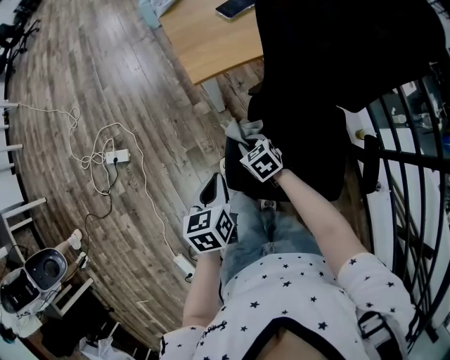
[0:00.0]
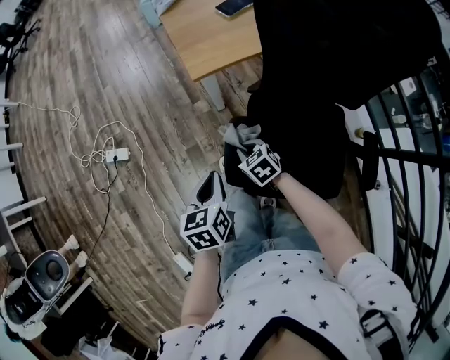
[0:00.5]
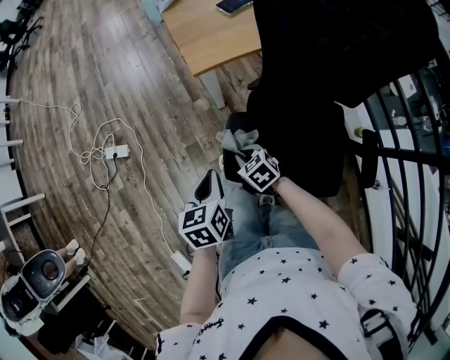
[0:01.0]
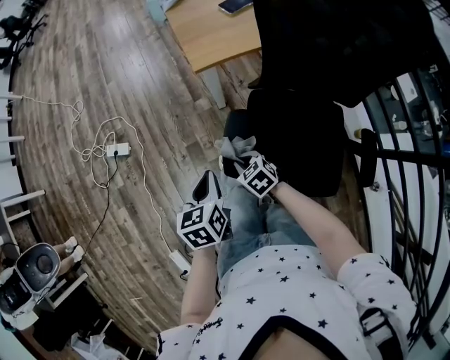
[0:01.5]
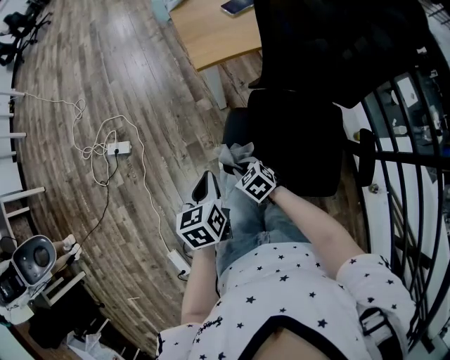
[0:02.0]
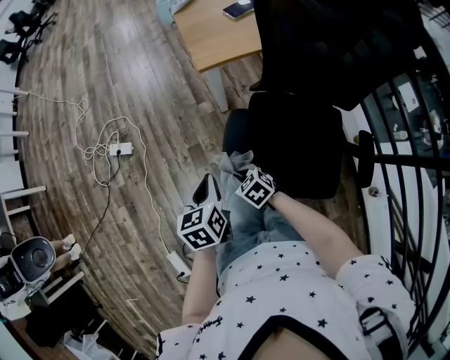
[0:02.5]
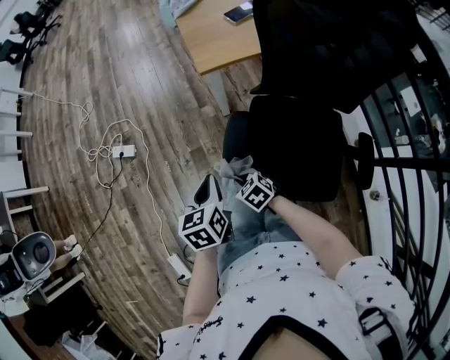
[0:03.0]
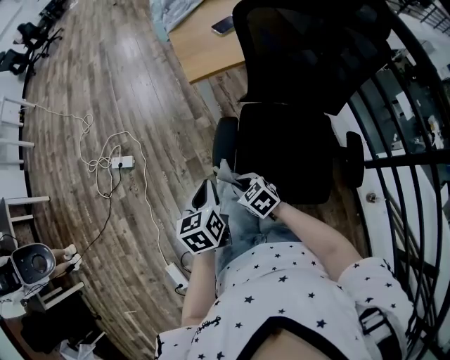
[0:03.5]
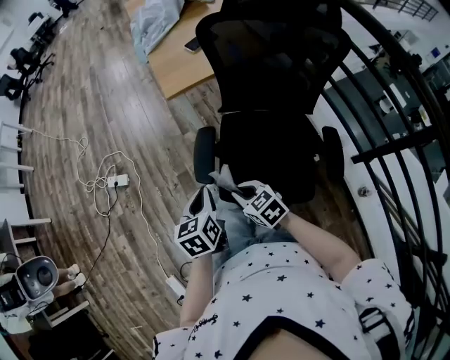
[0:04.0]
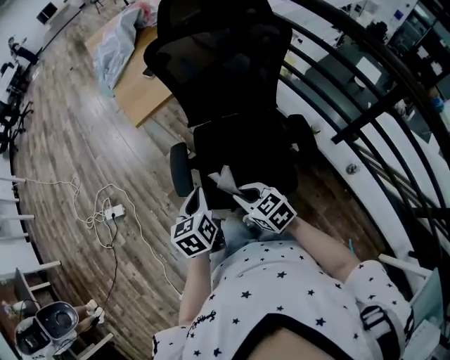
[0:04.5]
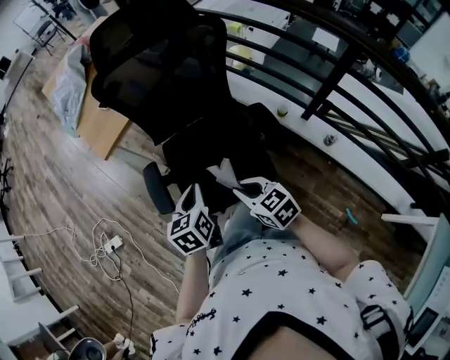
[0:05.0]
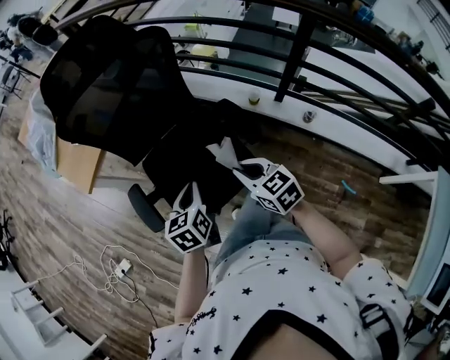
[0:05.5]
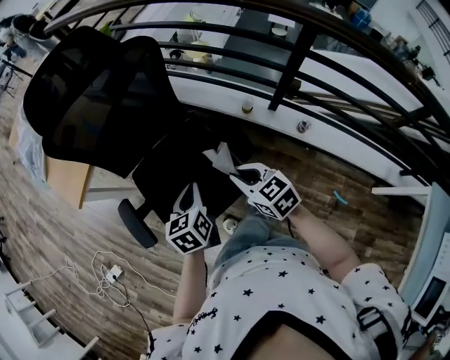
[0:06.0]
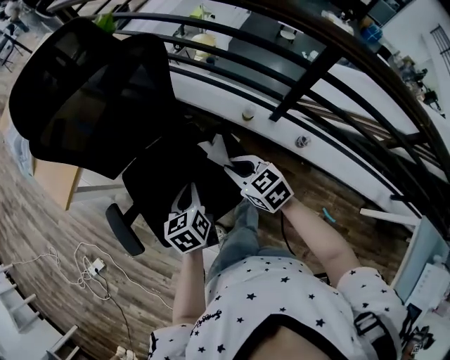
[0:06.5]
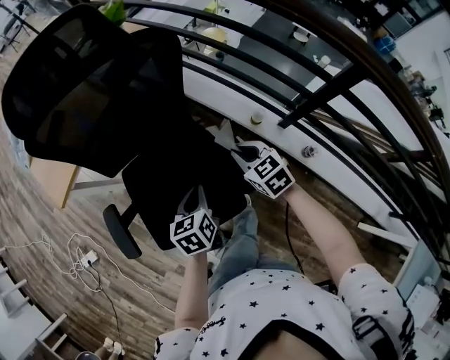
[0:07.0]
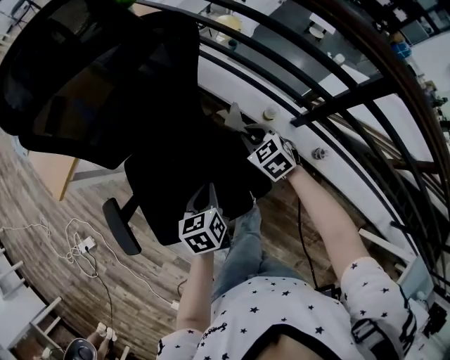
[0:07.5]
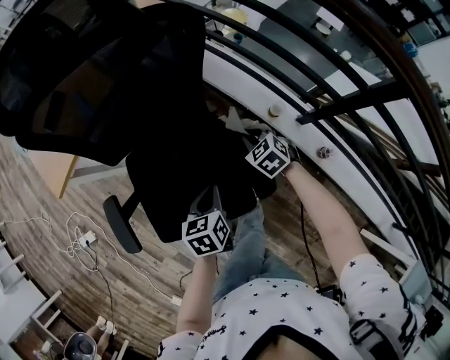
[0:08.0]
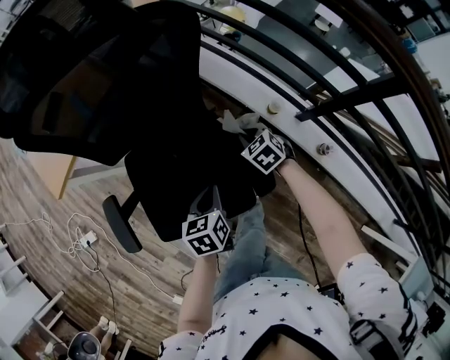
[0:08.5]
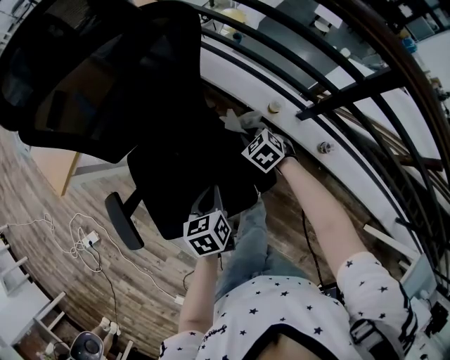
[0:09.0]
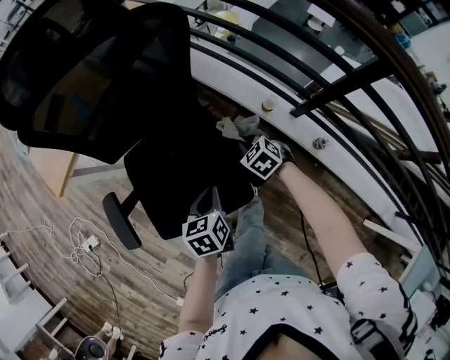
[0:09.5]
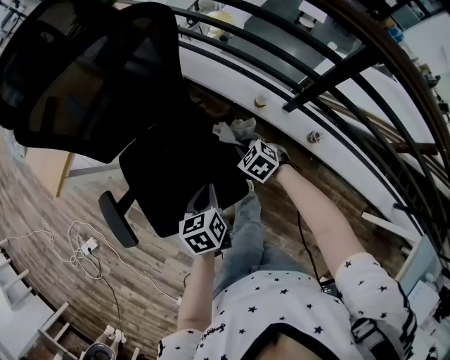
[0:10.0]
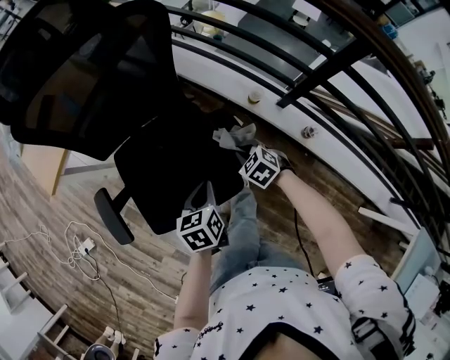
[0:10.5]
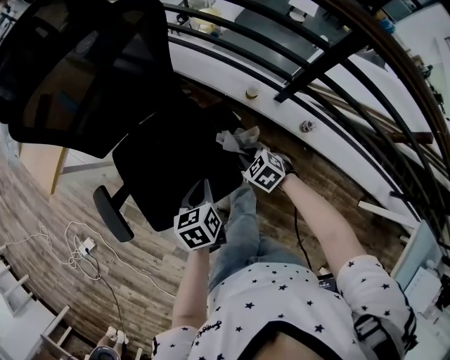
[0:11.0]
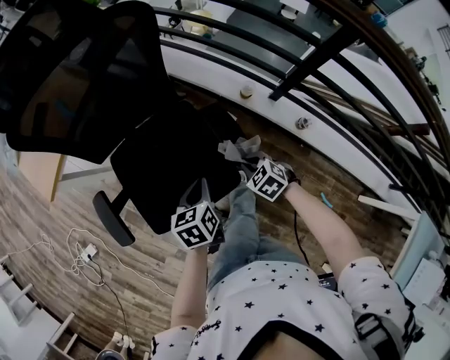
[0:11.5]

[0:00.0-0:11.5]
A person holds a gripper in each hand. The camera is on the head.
0:00.0 to 0:02.0: The right gripper moves backward and to the left, about 15 cm. Meanwhile the left gripper moves about 5 cm.
0:02.0 to 0:04.0: The left gripper is displaced backward and upward by approximately 10 cm. The right gripper is displaced upward and backward by approximately 20 cm.
0:04.0 to 0:06.0: The left gripper moves roughly 35 cm, and changes its angle by about 40 degrees. The right gripper moves approximately 35 cm, and rotates approximately 40 degrees.
0:06.0 to 0:07.5: The right gripper travels forward and downward by about 25 cm, and changes its angle by about 30 degrees; the left gripper goes approximately 15 cm downward, forward and to the right.
0:07.5 to 0:09.5: The right gripper goes roughly 10 cm downward and backward.
0:09.5 to 0:11.5: The right gripper goes roughly 15 cm backward.

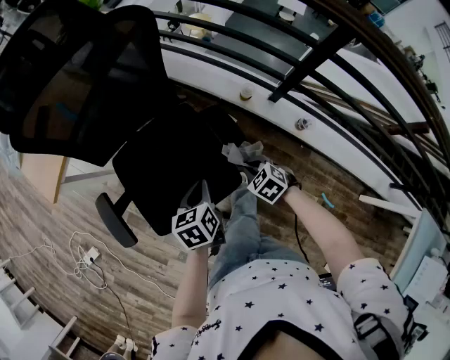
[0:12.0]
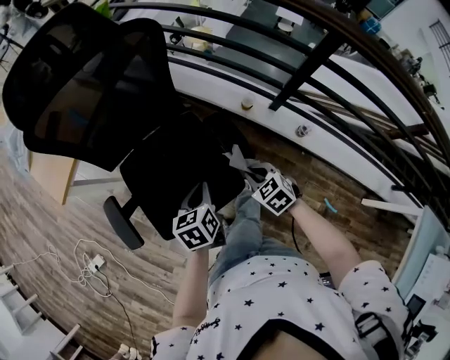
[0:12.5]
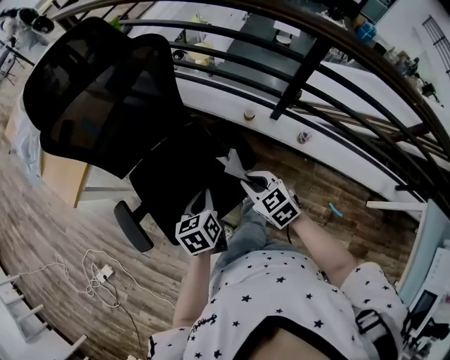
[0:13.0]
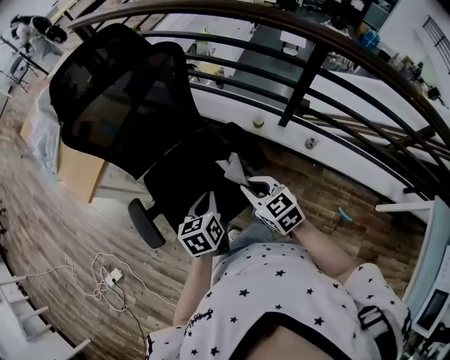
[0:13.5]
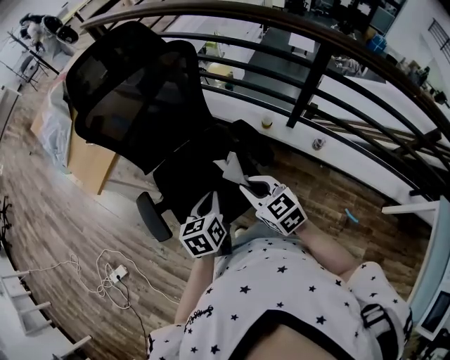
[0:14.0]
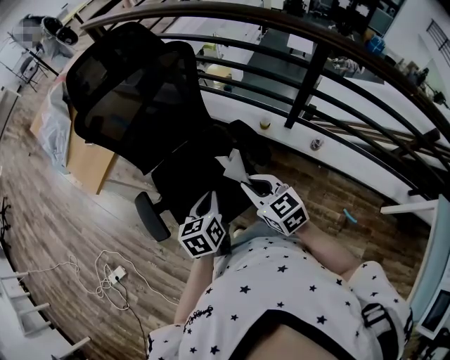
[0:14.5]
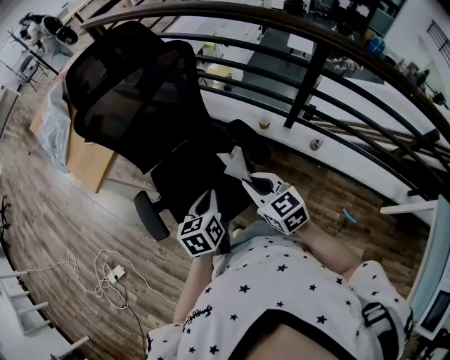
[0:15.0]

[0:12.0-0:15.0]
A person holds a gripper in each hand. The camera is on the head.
0:12.0 to 0:13.5: The right gripper travels upward and to the left by about 20 cm, and angles its fingers upward, by roughly 30 degrees. The left gripper travels upward and to the left by some 10 cm.
0:13.5 to 0:15.0: The right gripper changes place by approximately 5 cm.

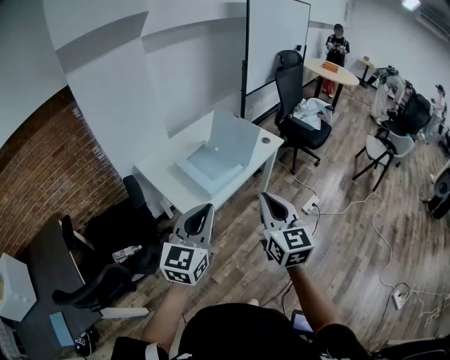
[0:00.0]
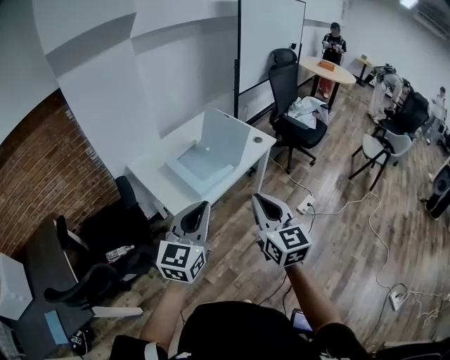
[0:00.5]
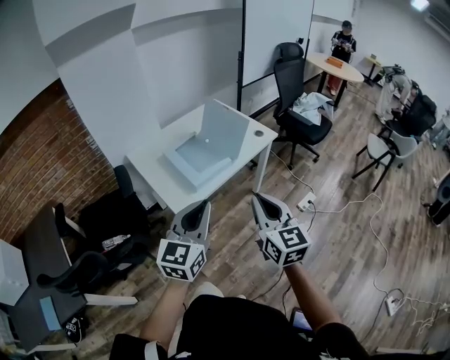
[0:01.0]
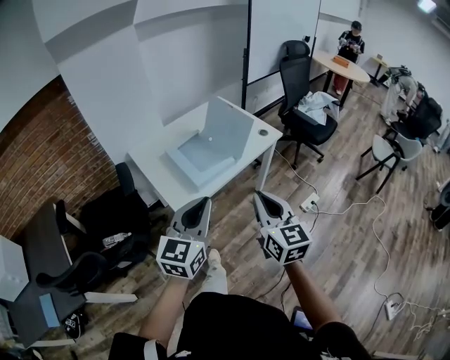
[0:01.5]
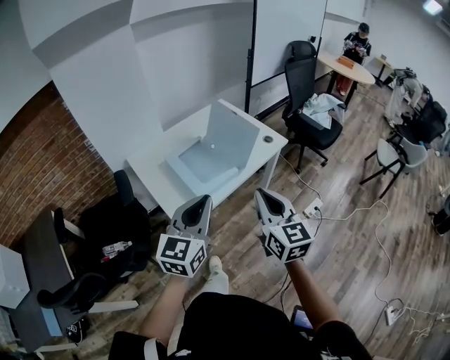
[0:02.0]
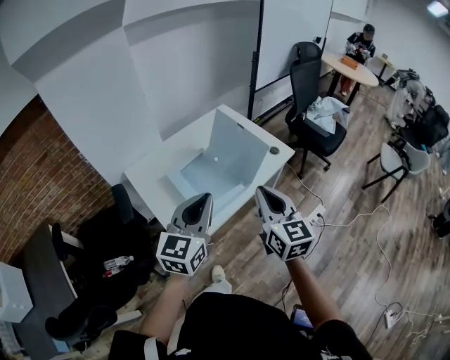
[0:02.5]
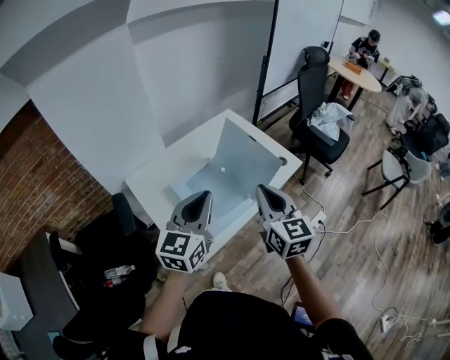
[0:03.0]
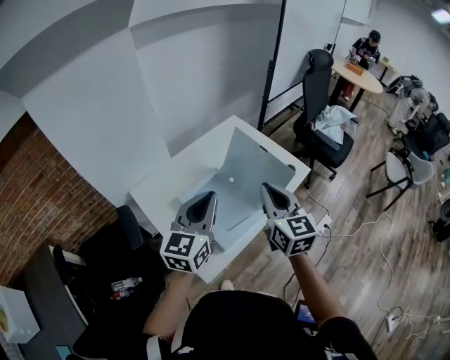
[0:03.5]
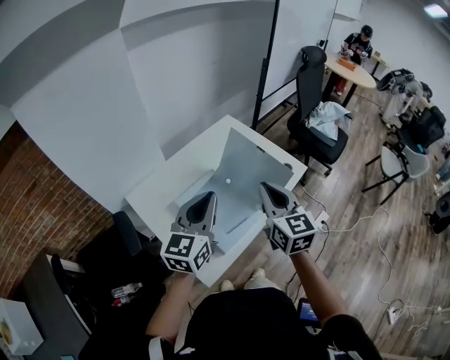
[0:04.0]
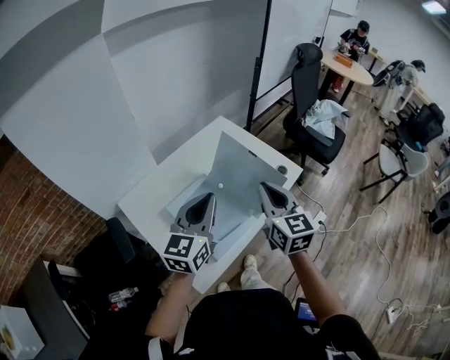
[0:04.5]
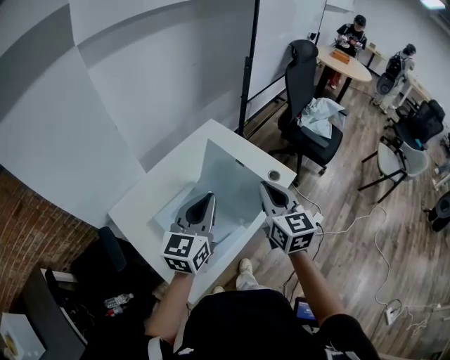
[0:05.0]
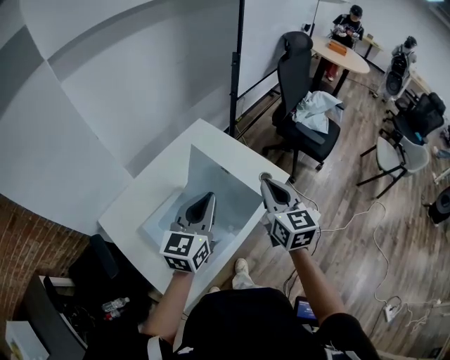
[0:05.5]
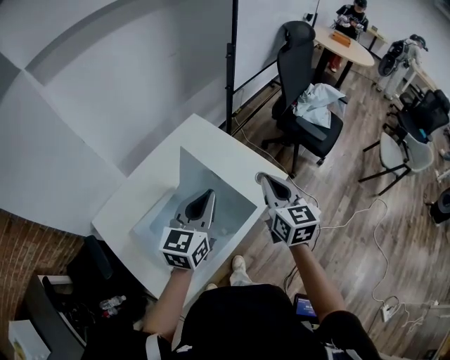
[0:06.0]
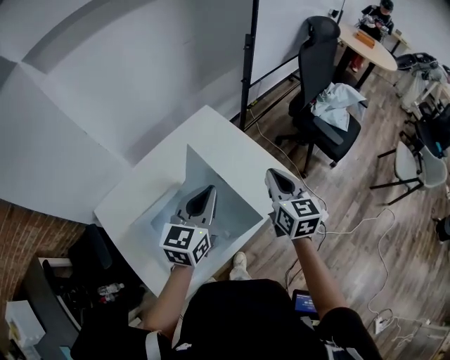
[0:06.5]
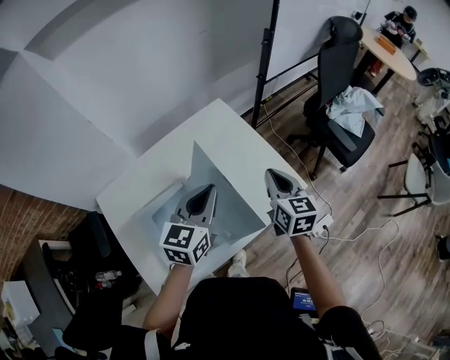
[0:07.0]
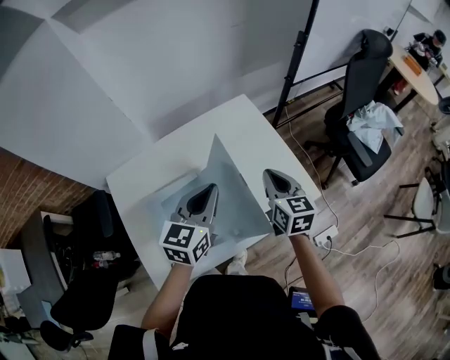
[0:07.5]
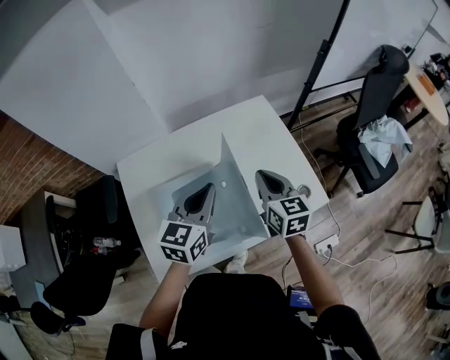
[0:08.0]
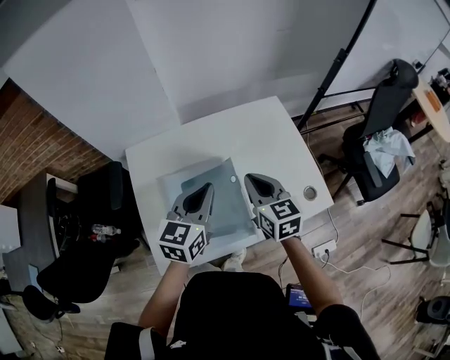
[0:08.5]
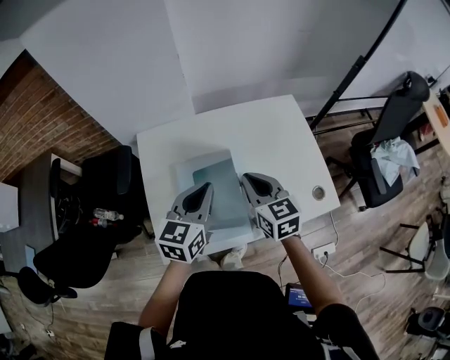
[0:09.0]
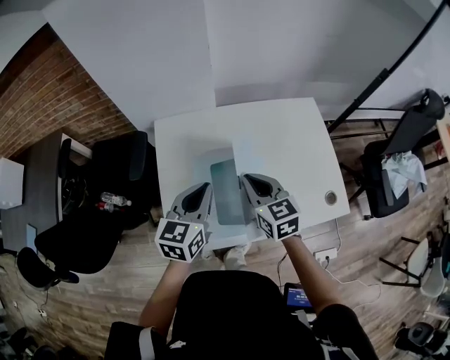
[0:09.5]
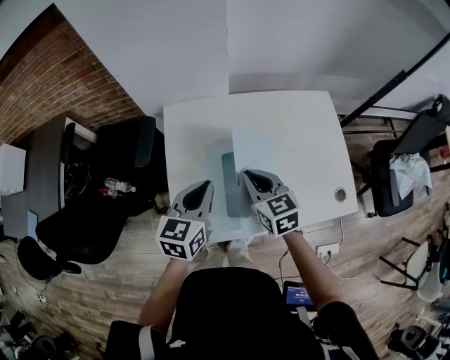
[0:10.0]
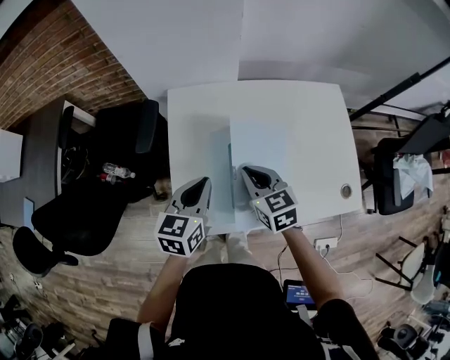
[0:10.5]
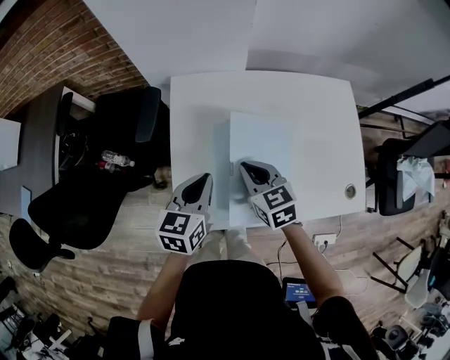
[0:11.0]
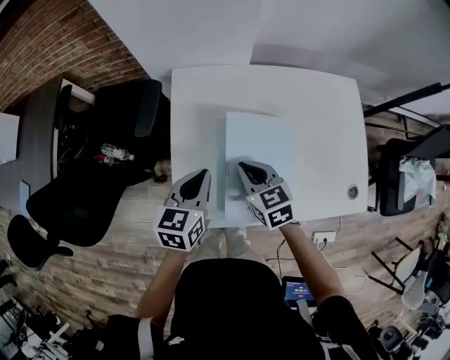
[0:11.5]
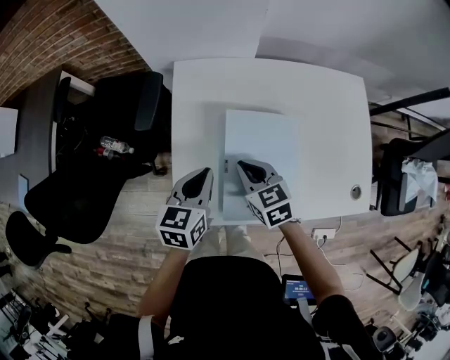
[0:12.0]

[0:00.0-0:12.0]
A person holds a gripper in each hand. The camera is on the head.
0:00.0 to 0:02.0: The left gripper shifts roughly 15 cm forward and to the right. Meanwhile the right gripper goes some 10 cm forward.
0:02.0 to 0:04.0: The two grippers go approximately 30 cm forward and to the left.
0:04.0 to 0:06.0: Both grippers travel together forward and to the right, approximately 25 cm.
0:06.0 to 0:08.0: The left gripper moves some 10 cm, and turns by approximately 30 degrees. Meanwhile the right gripper ends up some 20 cm from where it was, and changes its angle by about 30 degrees.
0:08.0 to 0:10.0: Both grippers travel together to the left, about 20 cm. The right gripper rotates roughly 30 degrees.
0:10.0 to 0:12.0: The left gripper heads downward, covering about 10 cm; the right gripper shifts about 10 cm downward and to the left.
